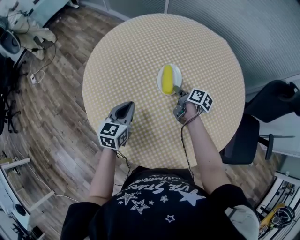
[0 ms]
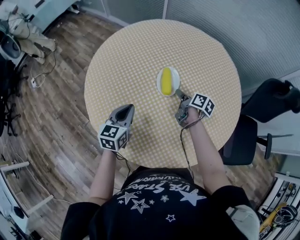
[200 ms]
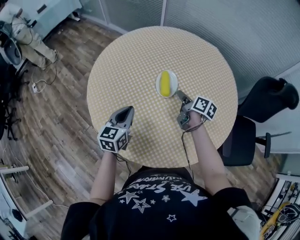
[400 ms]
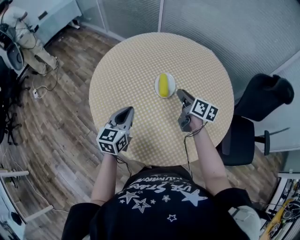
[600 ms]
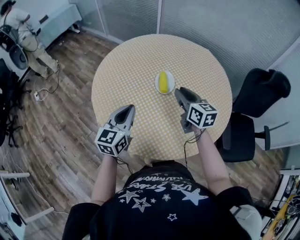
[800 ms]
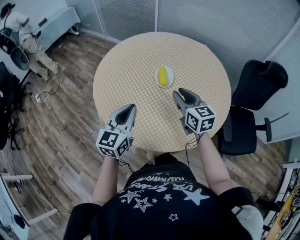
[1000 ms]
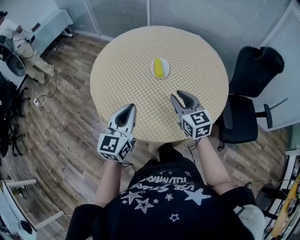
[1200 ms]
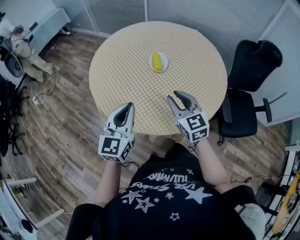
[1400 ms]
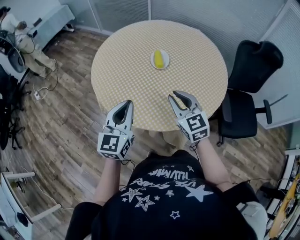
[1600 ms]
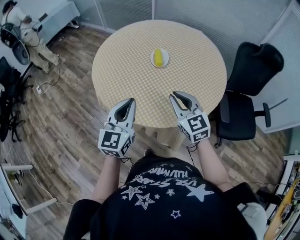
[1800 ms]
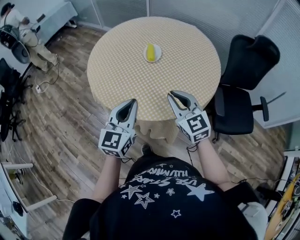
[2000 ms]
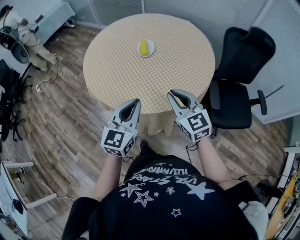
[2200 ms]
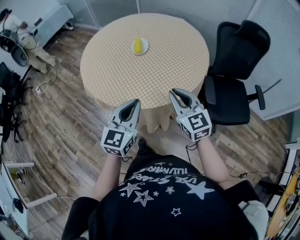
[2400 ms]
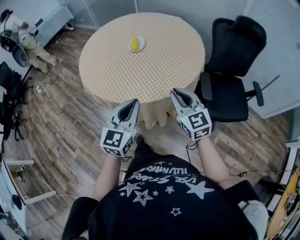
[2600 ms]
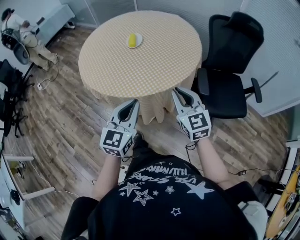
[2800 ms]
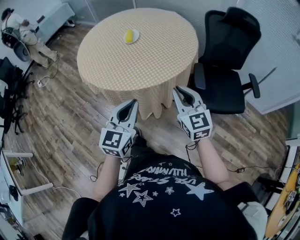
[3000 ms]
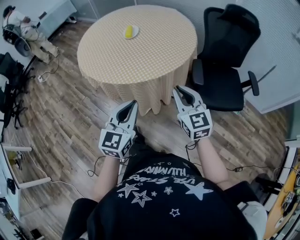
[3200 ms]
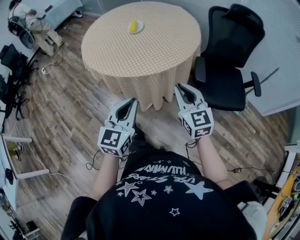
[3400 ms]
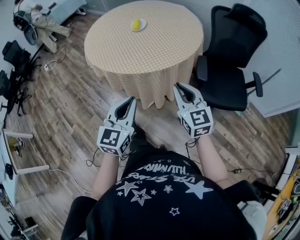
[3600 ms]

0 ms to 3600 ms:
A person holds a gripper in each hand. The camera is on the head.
0 ms to 1800 ms: Both grippers travel together backward and upward, roughly 35 cm. The left gripper swivels some 30 degrees. The right gripper rotates around the line of its fingers by some 80 degrees, counterclockwise from behind.
1800 ms to 3600 ms: Both grippers travel together backward and to the right, some 35 cm.

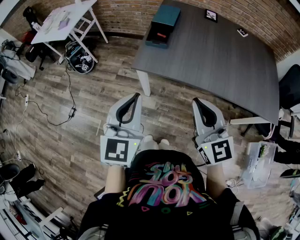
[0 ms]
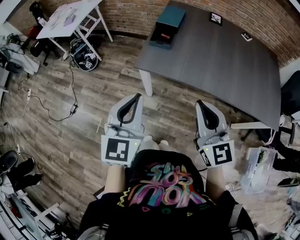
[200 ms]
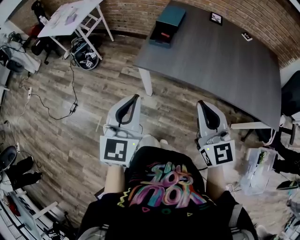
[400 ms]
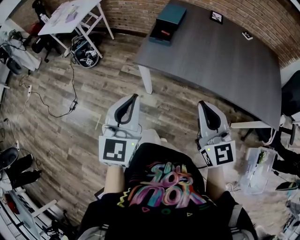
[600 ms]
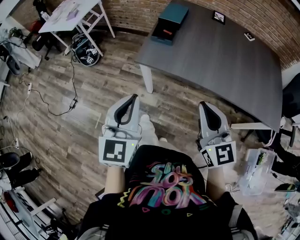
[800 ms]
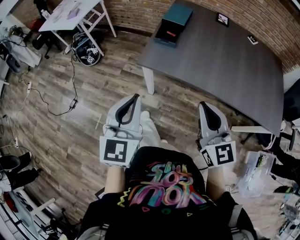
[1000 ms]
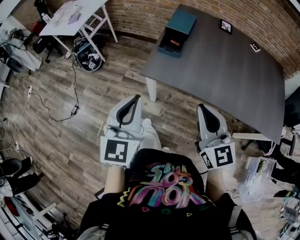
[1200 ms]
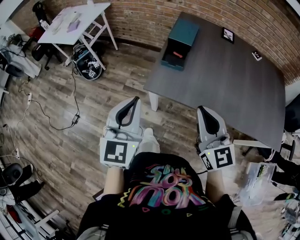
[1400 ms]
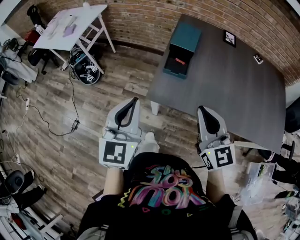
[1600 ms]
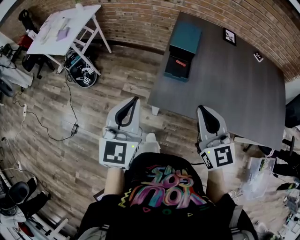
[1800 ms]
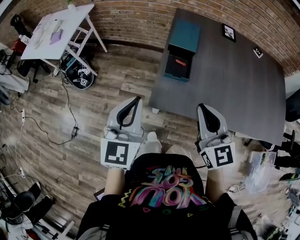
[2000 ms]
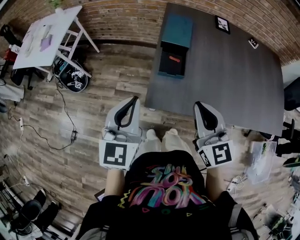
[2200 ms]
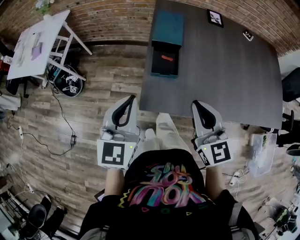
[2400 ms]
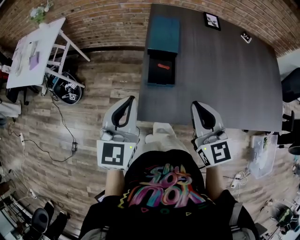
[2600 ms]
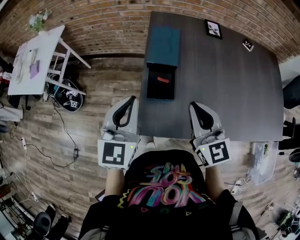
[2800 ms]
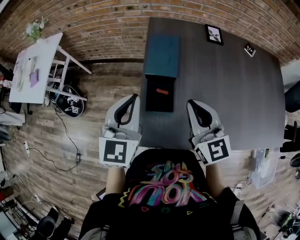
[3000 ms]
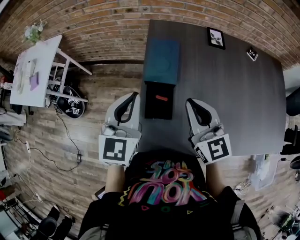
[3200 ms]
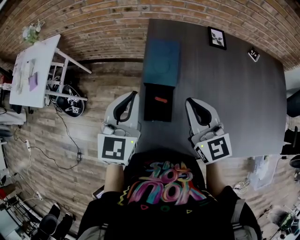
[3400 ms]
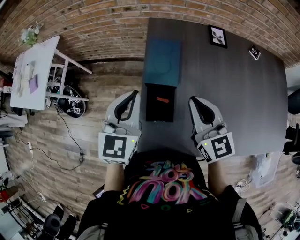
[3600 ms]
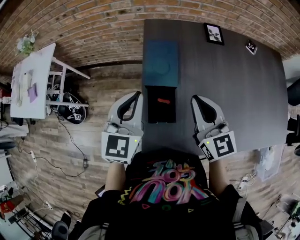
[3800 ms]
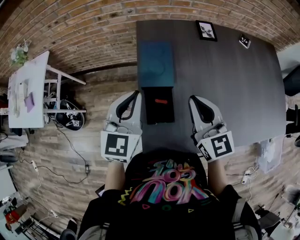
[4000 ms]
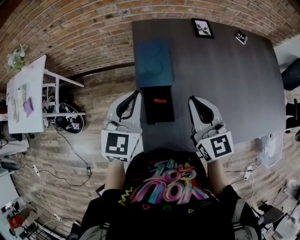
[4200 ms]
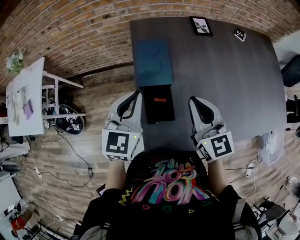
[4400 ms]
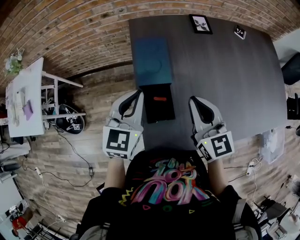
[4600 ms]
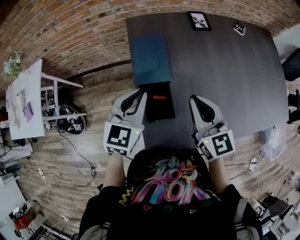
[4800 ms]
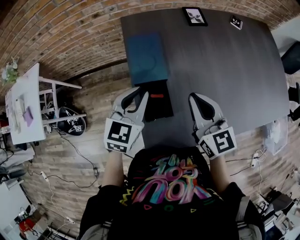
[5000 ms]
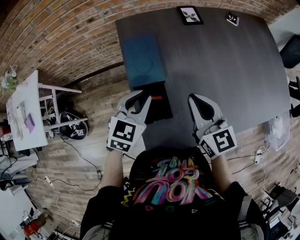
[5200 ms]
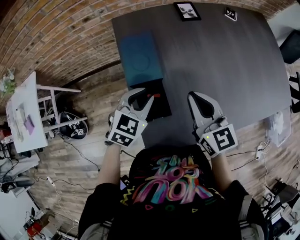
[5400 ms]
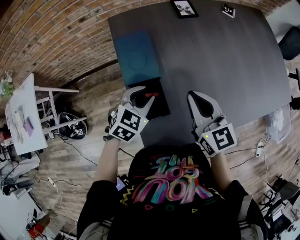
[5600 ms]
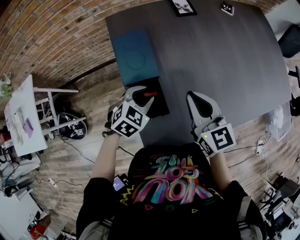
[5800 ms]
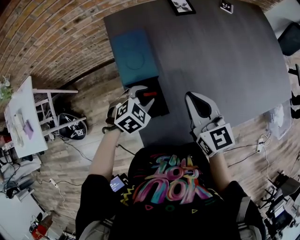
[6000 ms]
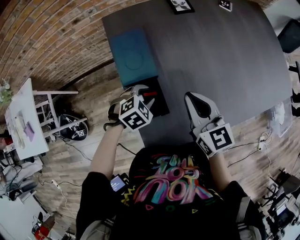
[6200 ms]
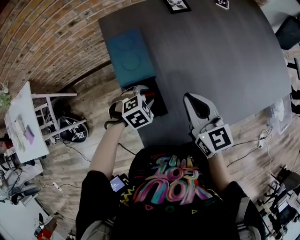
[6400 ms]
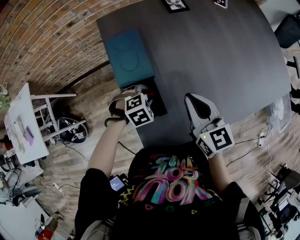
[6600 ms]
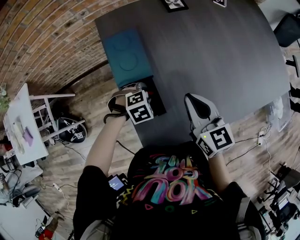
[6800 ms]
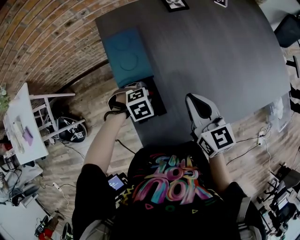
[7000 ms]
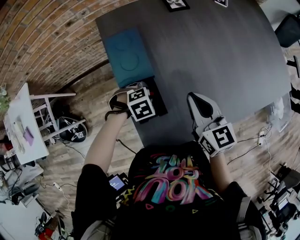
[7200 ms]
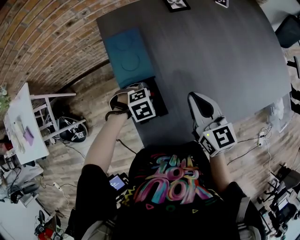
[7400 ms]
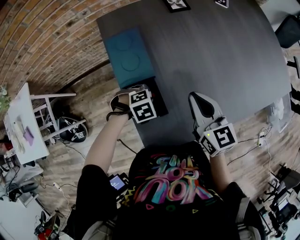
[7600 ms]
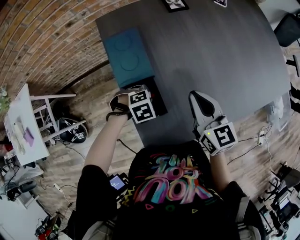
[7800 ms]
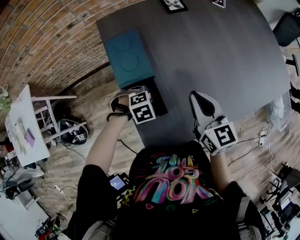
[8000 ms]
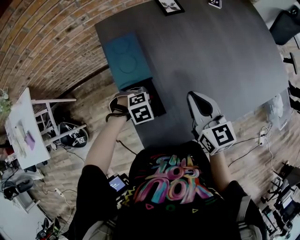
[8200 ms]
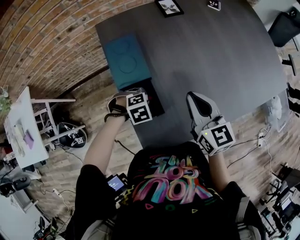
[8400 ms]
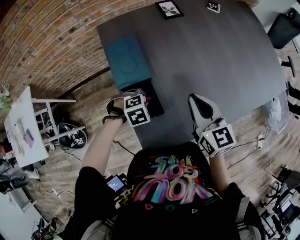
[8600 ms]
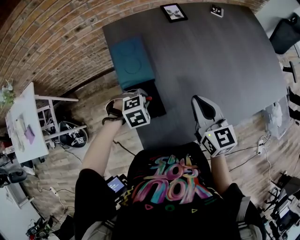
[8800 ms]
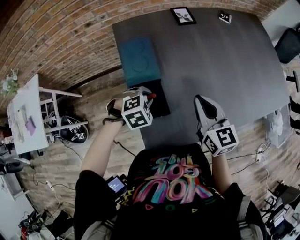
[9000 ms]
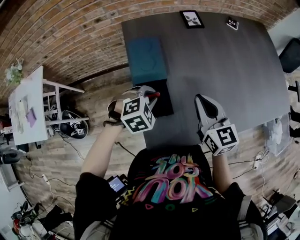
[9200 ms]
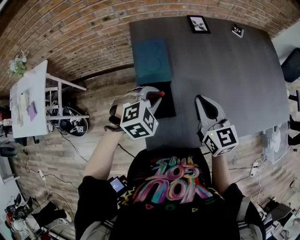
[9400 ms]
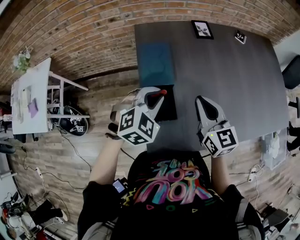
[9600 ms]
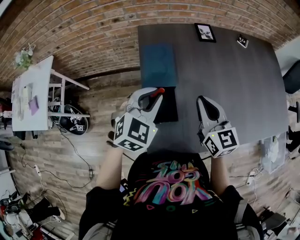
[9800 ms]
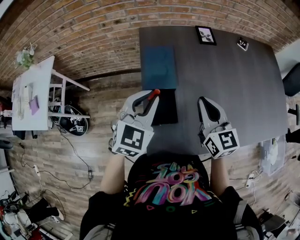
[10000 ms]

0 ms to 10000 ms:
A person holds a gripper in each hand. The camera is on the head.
0 ms to 1400 ms: The right gripper goes some 10 cm forward. Meanwhile the left gripper goes some 15 cm forward and to the left.
1400 ms to 2800 ms: The grippers both shift forward by approximately 25 cm.
2800 ms to 4200 ms: Both grippers travel together forward, approximately 15 cm.
4200 ms to 5800 ms: The left gripper shifts some 20 cm downward and to the right, points its fingers about 30 degrees further downward, and opens its fingers; the right gripper goes roughly 5 cm downward.
5800 ms to 7200 ms: The left gripper shifts about 10 cm downward, and turns by some 40 degrees.
7200 ms to 8600 ms: The left gripper closes up.
8600 ms to 10000 ms: The left gripper heads upward, covering about 25 cm, and tips its fingers upward by about 50 degrees. The right gripper changes place by approximately 10 cm.

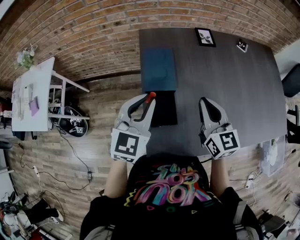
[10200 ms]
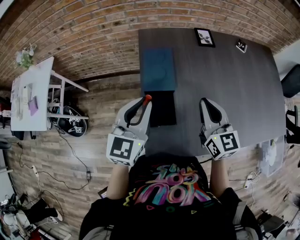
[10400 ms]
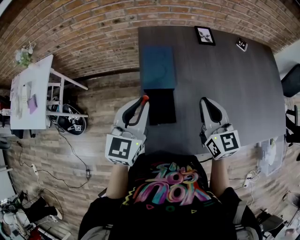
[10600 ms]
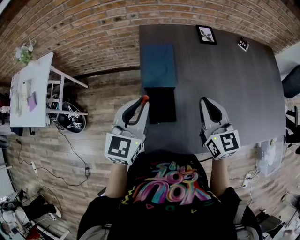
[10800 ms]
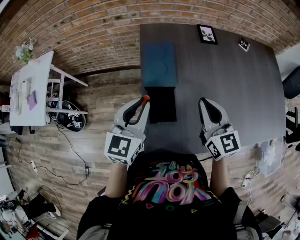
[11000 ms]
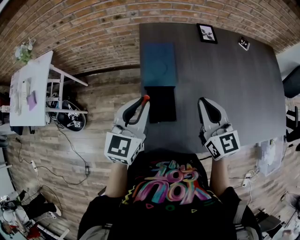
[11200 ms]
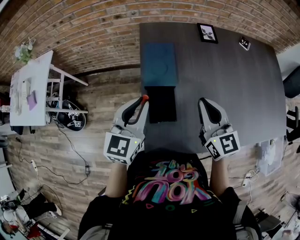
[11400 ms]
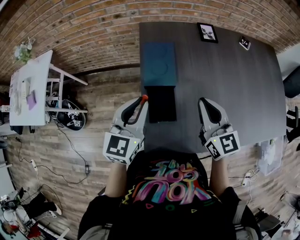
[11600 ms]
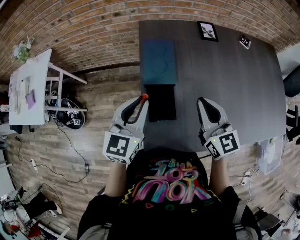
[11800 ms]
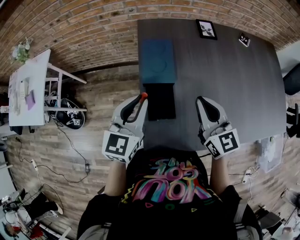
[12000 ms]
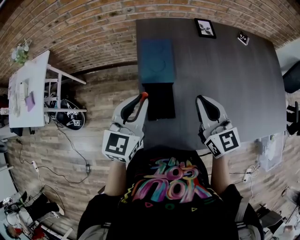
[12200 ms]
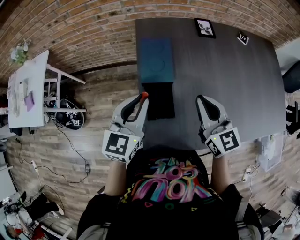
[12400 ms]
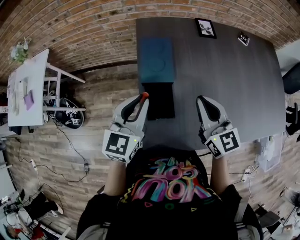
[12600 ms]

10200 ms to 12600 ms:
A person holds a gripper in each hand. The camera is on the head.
10200 ms to 11400 ms: There are only small adjustments of the grippers.
11400 ms to 12600 ms: The two grippers keep their place.

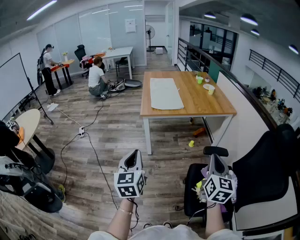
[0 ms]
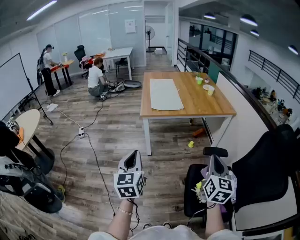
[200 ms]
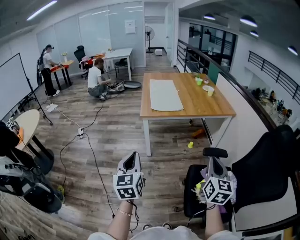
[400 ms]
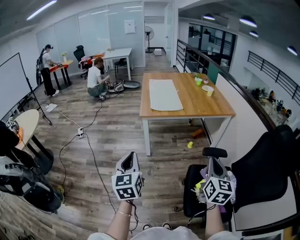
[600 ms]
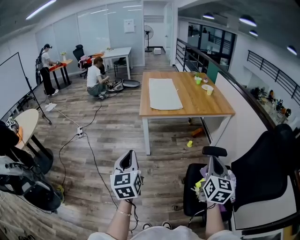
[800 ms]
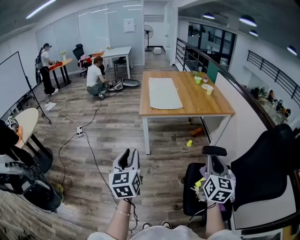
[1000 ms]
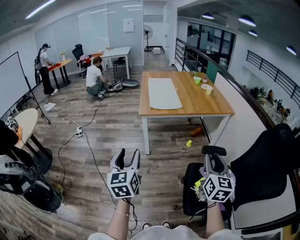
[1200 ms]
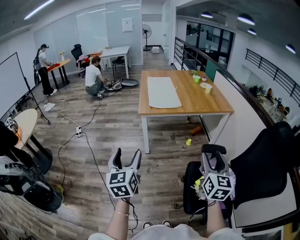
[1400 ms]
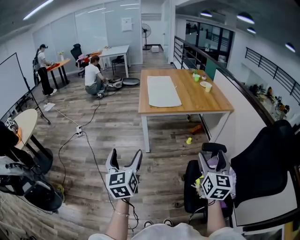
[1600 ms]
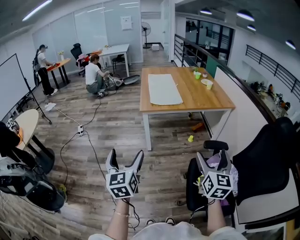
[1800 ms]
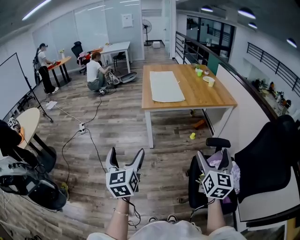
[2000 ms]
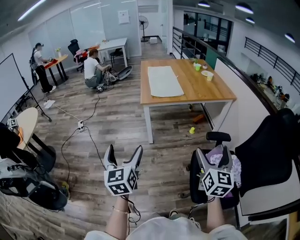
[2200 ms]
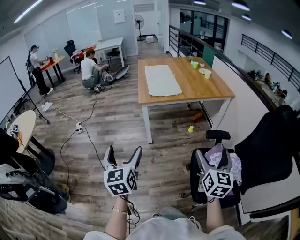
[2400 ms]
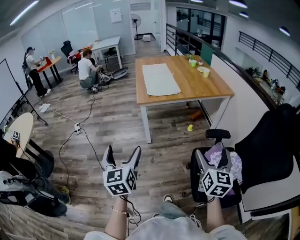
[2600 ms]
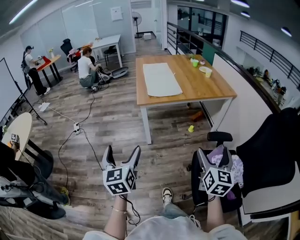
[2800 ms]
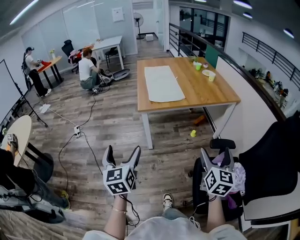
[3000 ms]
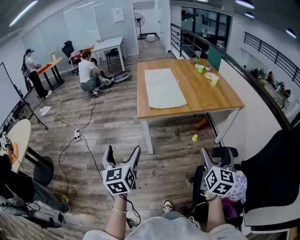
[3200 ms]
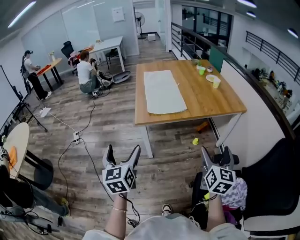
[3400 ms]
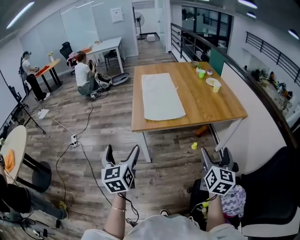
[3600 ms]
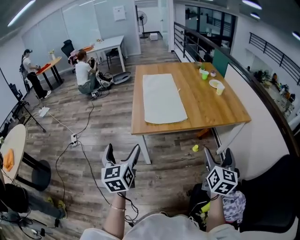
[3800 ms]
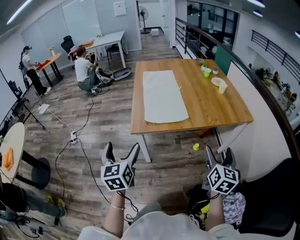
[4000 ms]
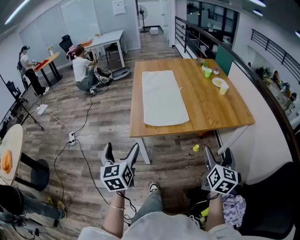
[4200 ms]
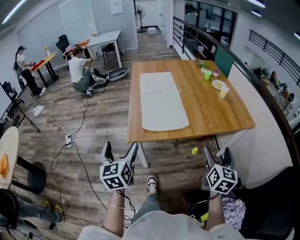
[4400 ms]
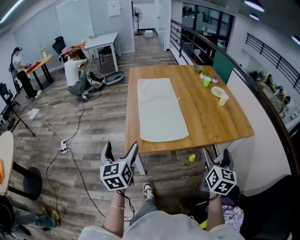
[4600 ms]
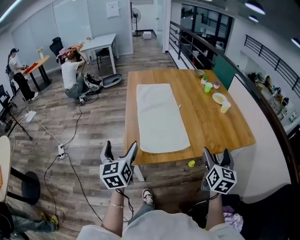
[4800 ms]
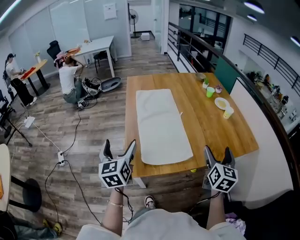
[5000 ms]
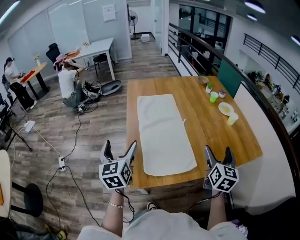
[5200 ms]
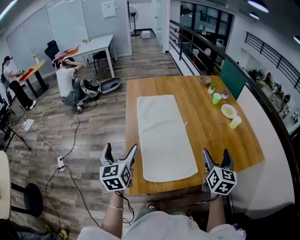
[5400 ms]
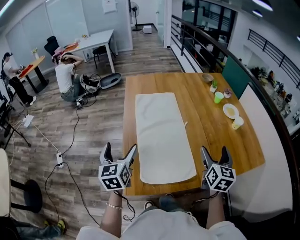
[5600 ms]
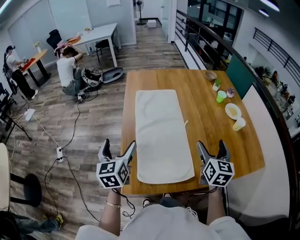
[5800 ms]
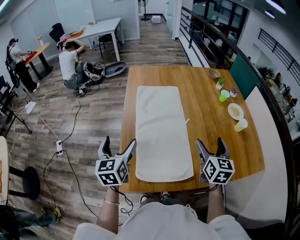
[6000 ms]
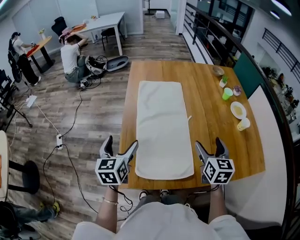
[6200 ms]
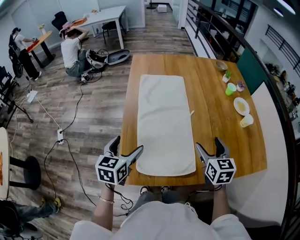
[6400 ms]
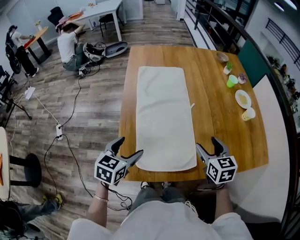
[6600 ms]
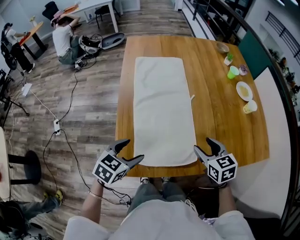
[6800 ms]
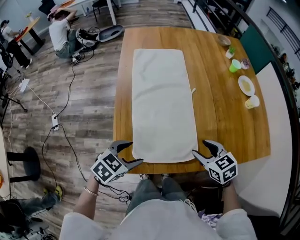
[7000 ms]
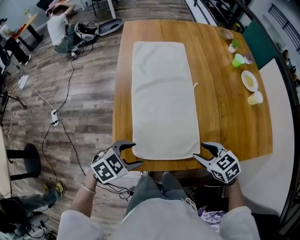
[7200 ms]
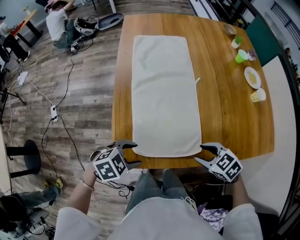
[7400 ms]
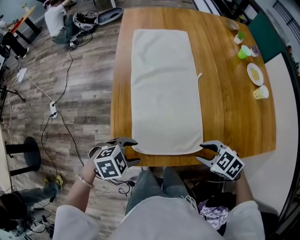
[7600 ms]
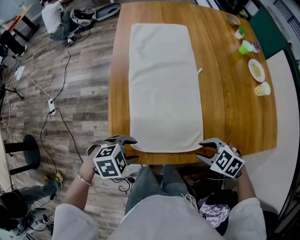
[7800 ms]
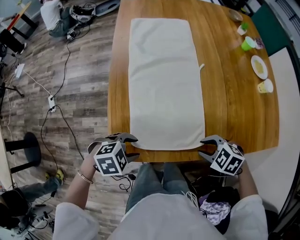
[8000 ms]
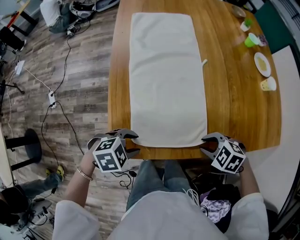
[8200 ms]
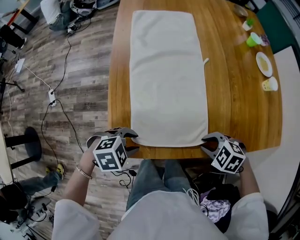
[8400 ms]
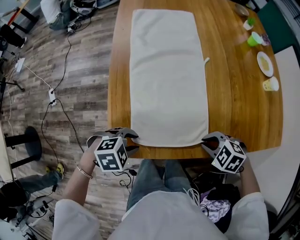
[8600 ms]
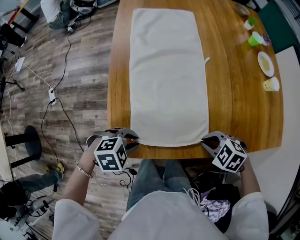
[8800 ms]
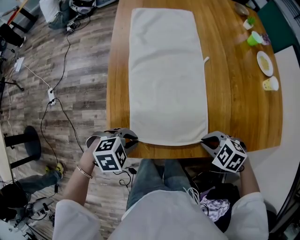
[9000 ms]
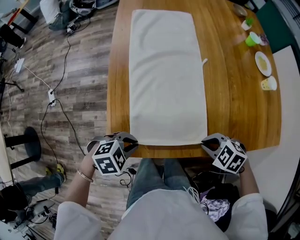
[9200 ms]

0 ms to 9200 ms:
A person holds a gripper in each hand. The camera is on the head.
0 ms to 1600 ms: The right gripper opens up. The left gripper changes place by some 5 cm, and opens up.
1600 ms to 3000 ms: Both grippers move forward, approximately 10 cm.
3000 ms to 4600 ms: The two grippers travel together, forward, roughly 40 cm.
4600 ms to 6200 ms: Both grippers move forward, some 30 cm. The right gripper turns by approximately 20 degrees.
6200 ms to 7600 ms: The grippers both shift downward by roughly 20 cm. The right gripper tilts its fingers about 40 degrees downward, and closes. Meanwhile the left gripper tilts its fingers some 40 degrees downward, and closes.
7600 ms to 9200 ms: The left gripper closes up.
